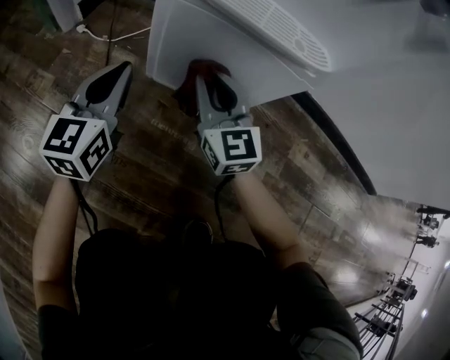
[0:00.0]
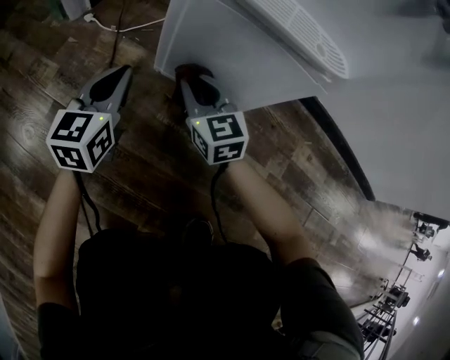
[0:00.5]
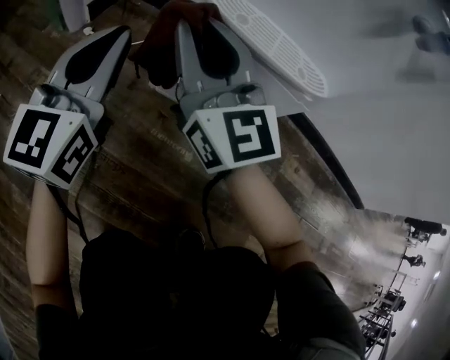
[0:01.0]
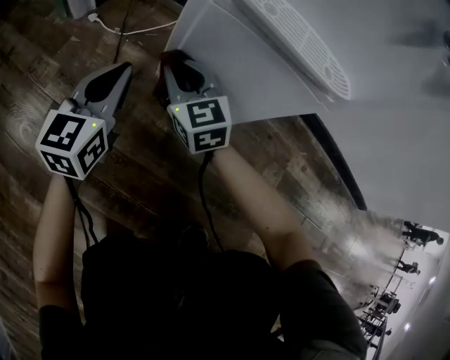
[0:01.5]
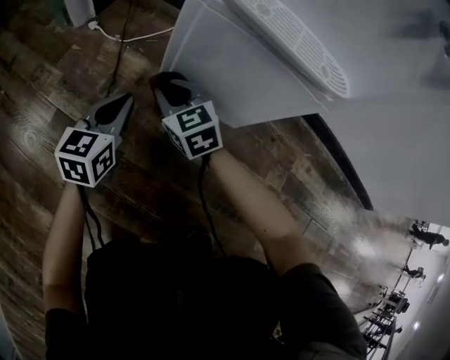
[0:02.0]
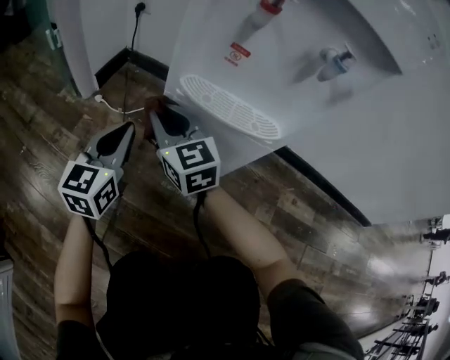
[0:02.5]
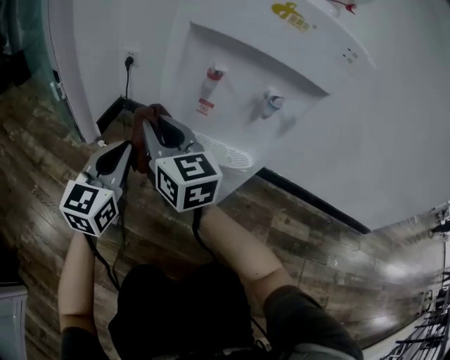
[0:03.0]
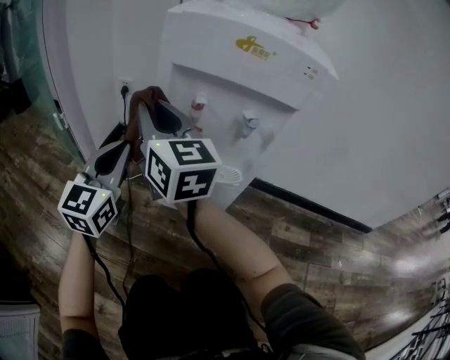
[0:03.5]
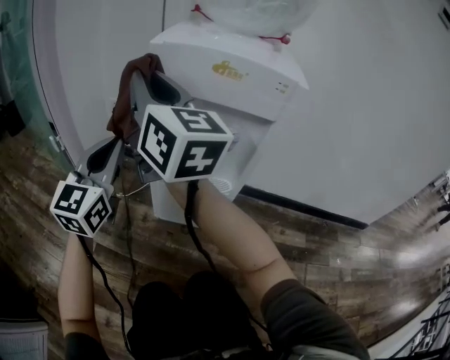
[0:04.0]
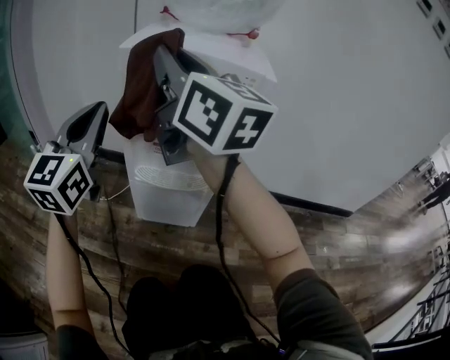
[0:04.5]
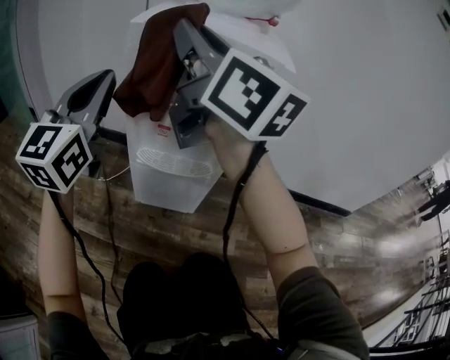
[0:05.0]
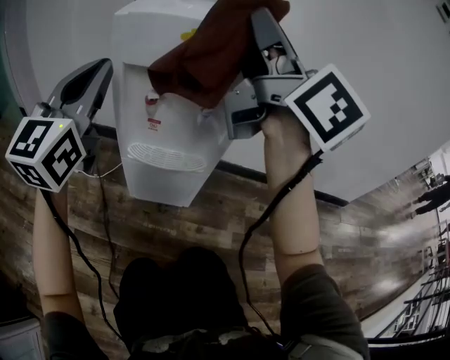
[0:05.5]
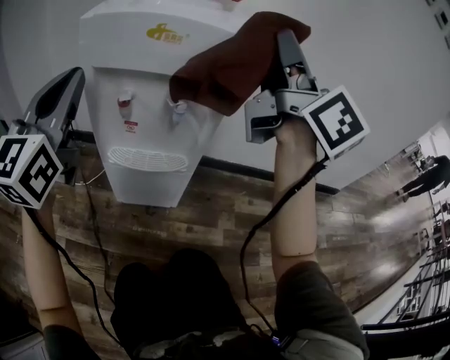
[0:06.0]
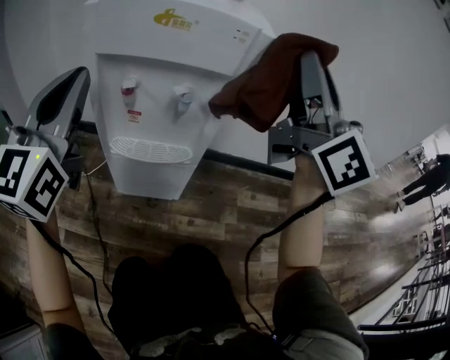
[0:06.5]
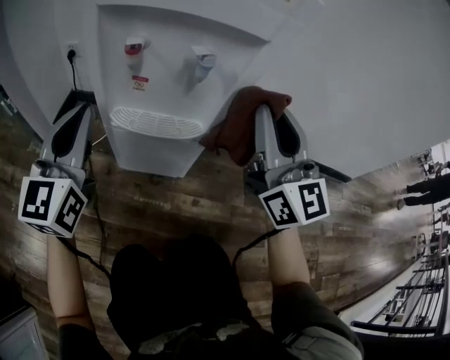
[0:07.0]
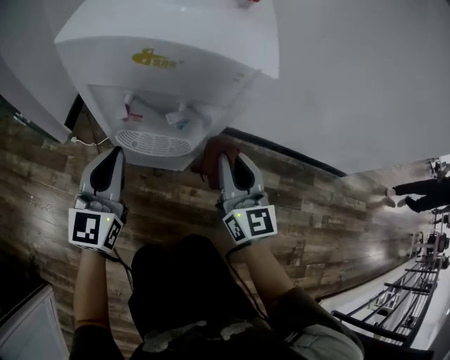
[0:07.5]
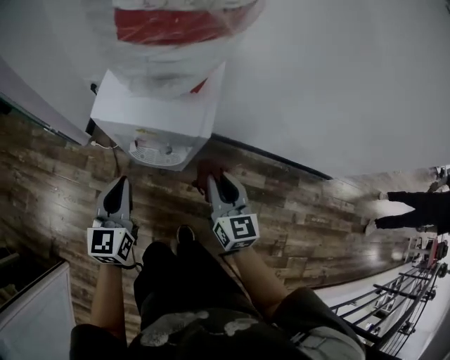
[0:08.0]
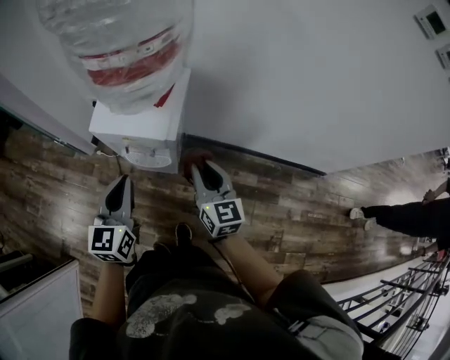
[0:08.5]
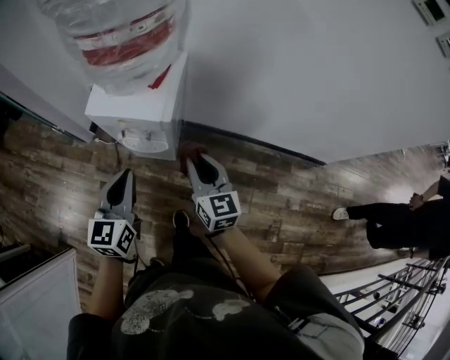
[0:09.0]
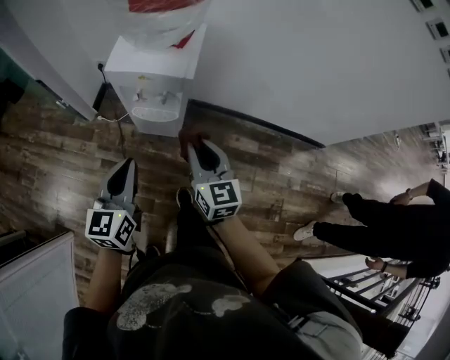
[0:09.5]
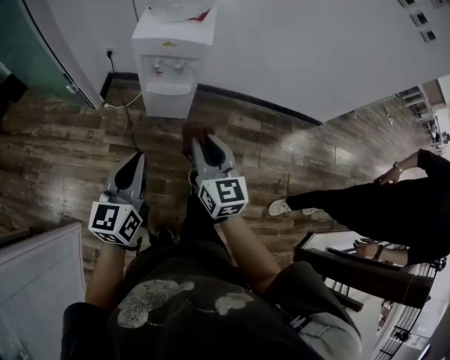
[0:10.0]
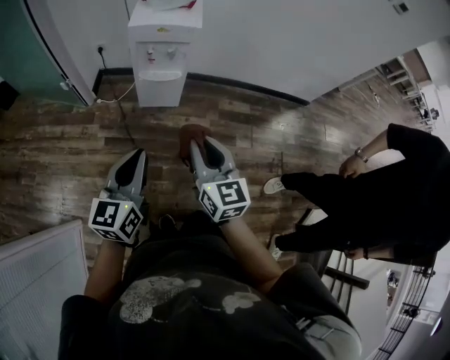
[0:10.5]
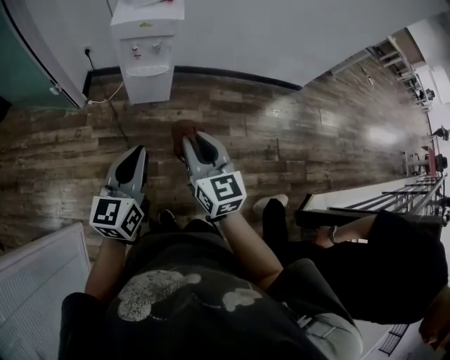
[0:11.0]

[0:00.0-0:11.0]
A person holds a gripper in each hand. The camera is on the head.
0:00.0 to 0:02.0: The right gripper goes up and down, about 25 cm each way, reversing 2 times, and rotates some 30 degrees. Meanwhile the left gripper goes up and down, about 20 cm each way, reversing 2 times.
0:02.0 to 0:03.5: The grippers both shift upward by approximately 40 cm. The left gripper changes its angle by roughly 30 degrees. Meanwhile the right gripper angles its fingers upward, by some 40 degrees.
0:03.5 to 0:05.5: The left gripper goes roughly 20 cm upward; the right gripper is displaced upward and to the right by roughly 30 cm, and rotates roughly 20 degrees.
0:05.5 to 0:07.5: The left gripper goes some 15 cm downward and to the right, and changes its angle by approximately 20 degrees, while the right gripper is displaced downward by about 30 cm, and swivels roughly 40 degrees.
0:07.5 to 0:09.0: The right gripper goes approximately 25 cm upward. Meanwhile the left gripper heads upward and to the right, covering some 30 cm.
0:09.0 to 0:11.0: Both grippers move backward, roughly 40 cm. The left gripper changes its angle by about 20 degrees.

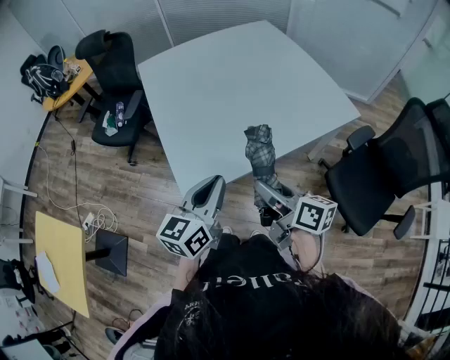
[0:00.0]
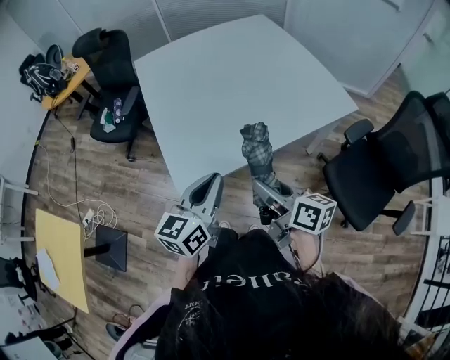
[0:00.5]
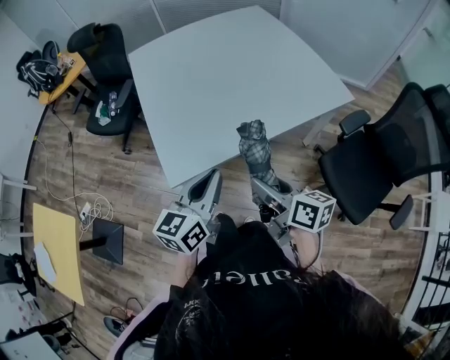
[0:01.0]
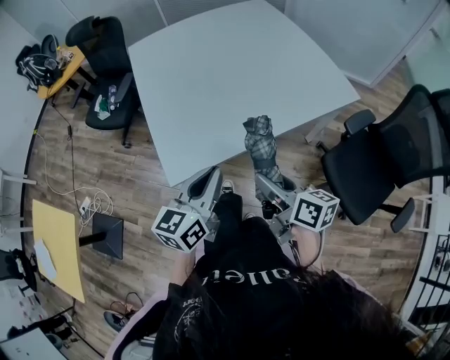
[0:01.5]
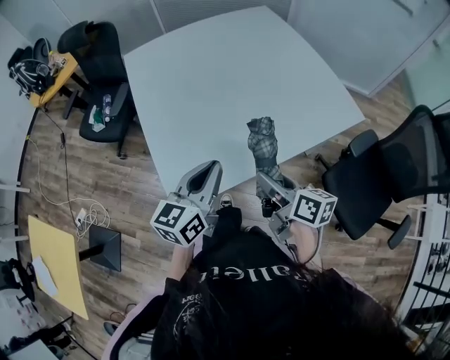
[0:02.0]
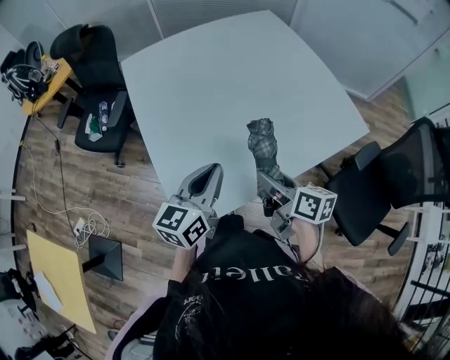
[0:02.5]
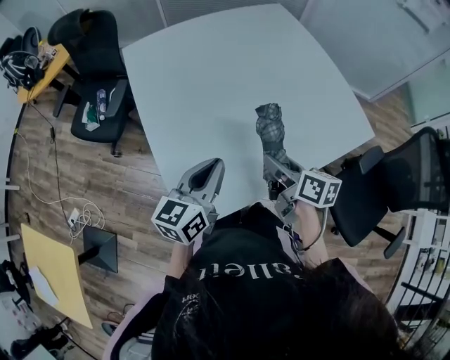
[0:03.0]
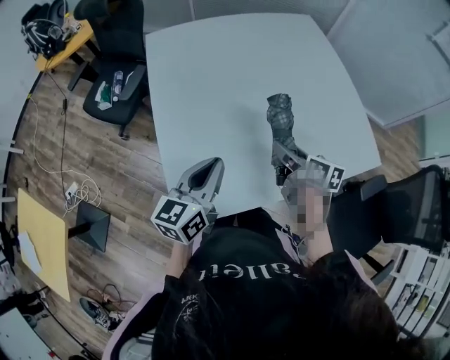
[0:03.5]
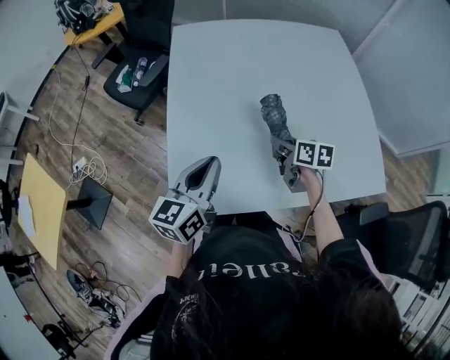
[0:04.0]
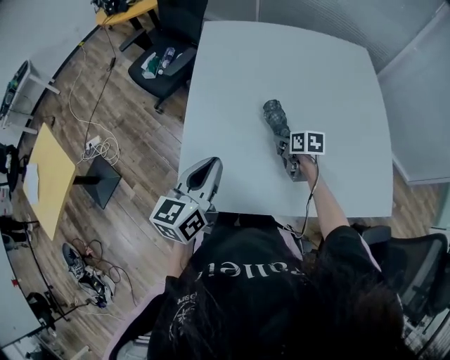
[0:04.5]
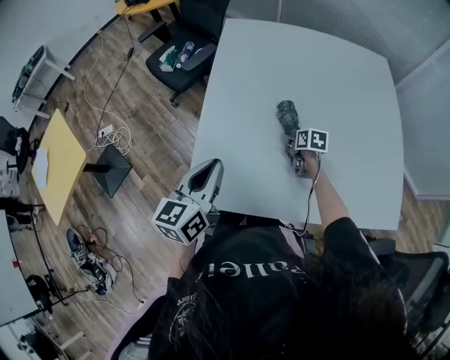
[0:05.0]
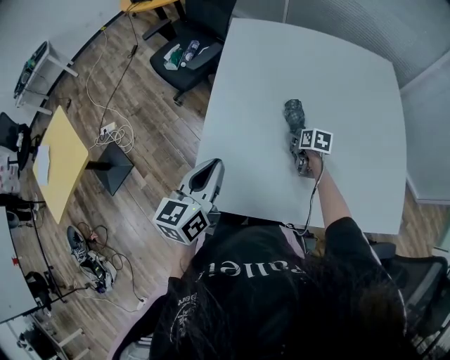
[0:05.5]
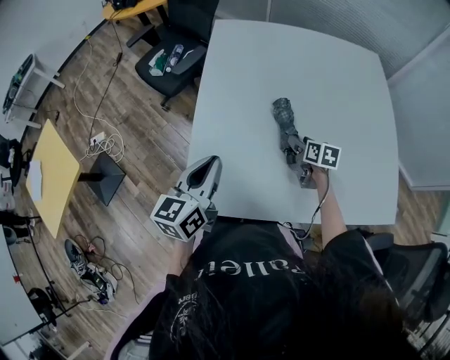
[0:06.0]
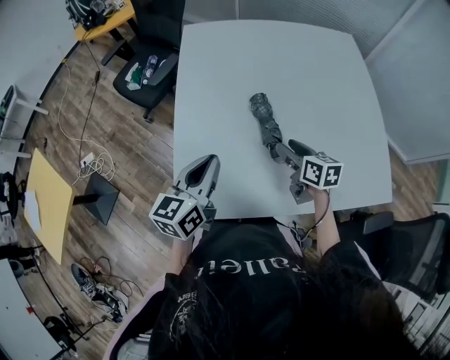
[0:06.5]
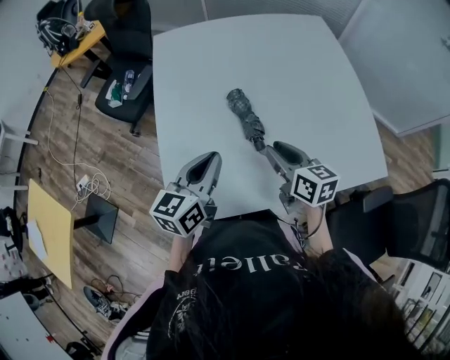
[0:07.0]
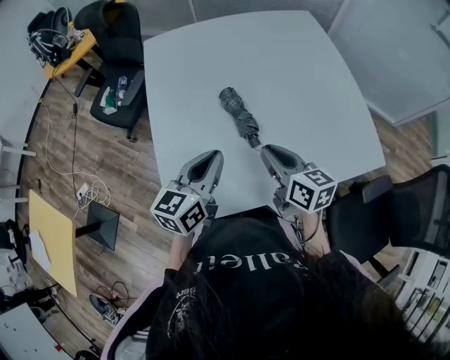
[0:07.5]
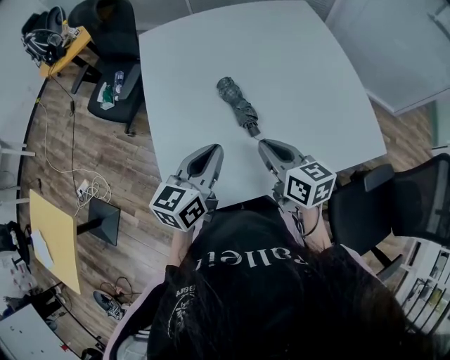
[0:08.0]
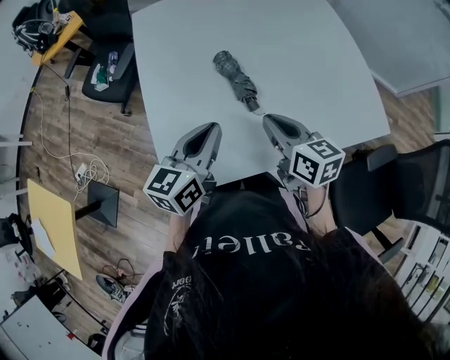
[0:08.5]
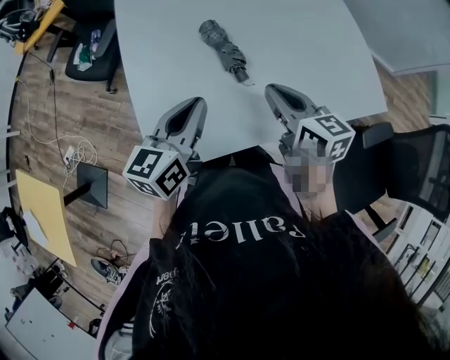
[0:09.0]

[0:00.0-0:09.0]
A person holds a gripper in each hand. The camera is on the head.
0:00.0 to 0:02.0: Both grippers move forward, some 10 cm.
0:02.0 to 0:04.5: The right gripper ends up approximately 35 cm from where it was, and turns by some 40 degrees. The left gripper ends up approximately 10 cm from where it was, and changes its angle by some 30 degrees.
0:04.5 to 0:07.0: The right gripper is displaced upward and backward by roughly 20 cm, and swivels roughly 30 degrees. Meanwhile the left gripper goes about 5 cm to the right.
0:07.0 to 0:09.0: The right gripper closes up.

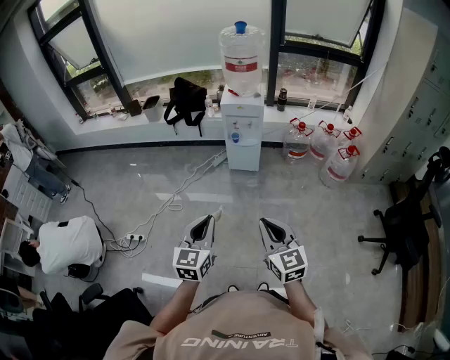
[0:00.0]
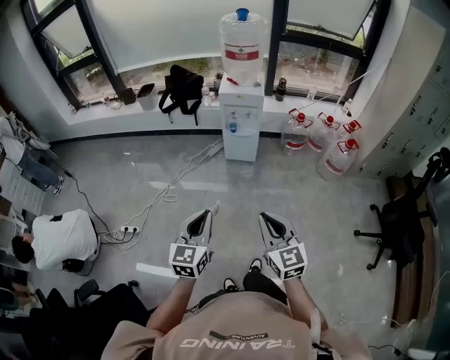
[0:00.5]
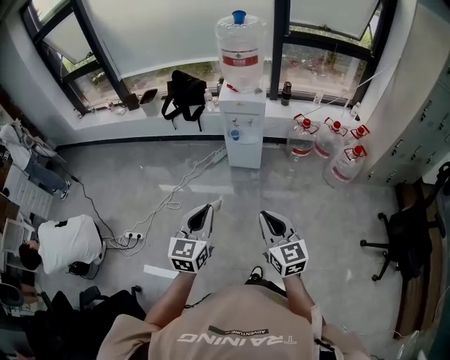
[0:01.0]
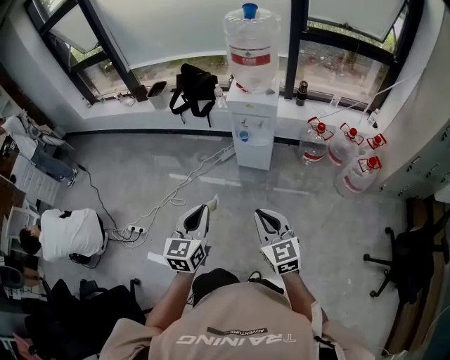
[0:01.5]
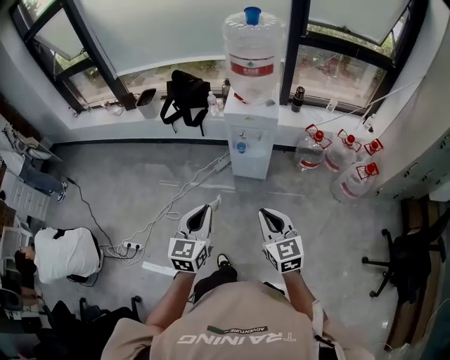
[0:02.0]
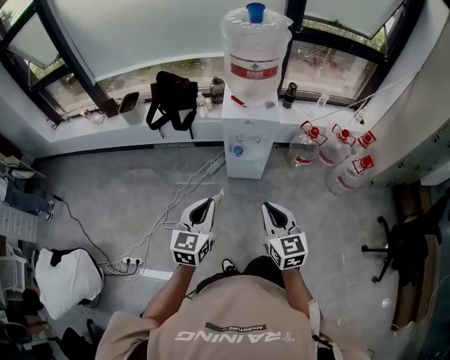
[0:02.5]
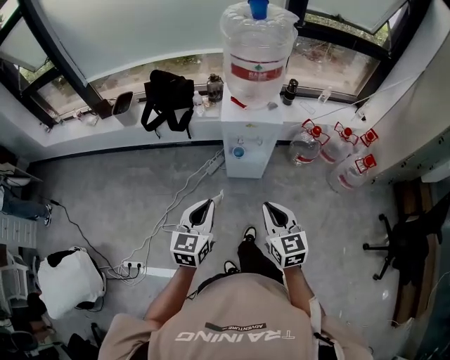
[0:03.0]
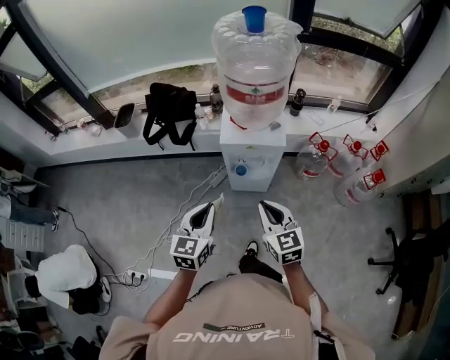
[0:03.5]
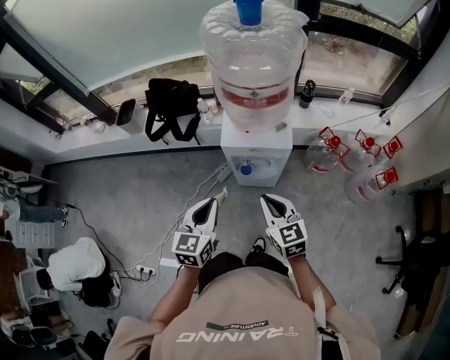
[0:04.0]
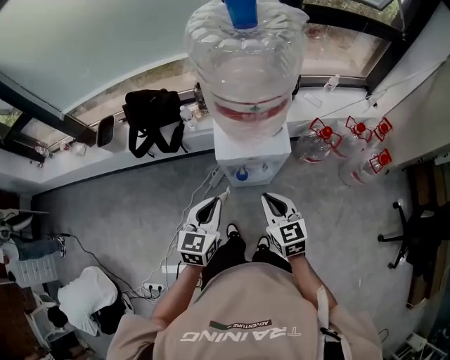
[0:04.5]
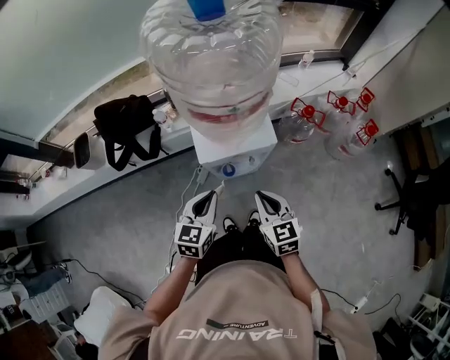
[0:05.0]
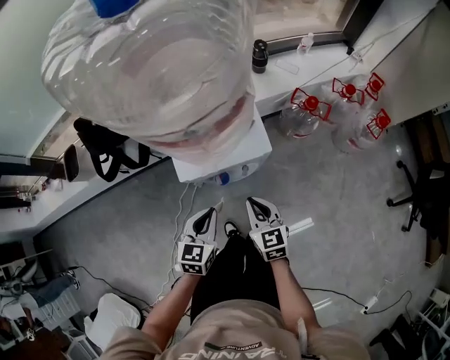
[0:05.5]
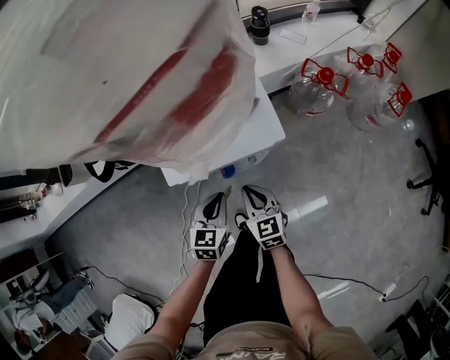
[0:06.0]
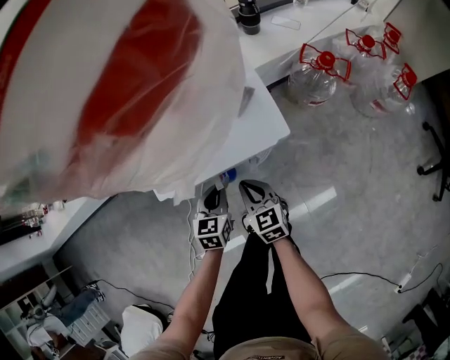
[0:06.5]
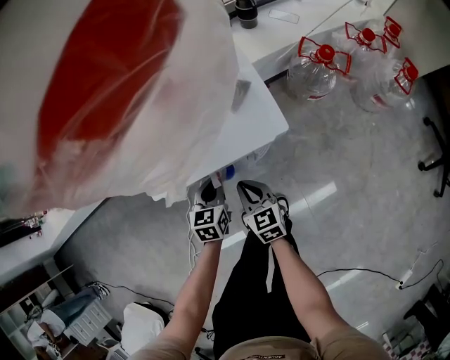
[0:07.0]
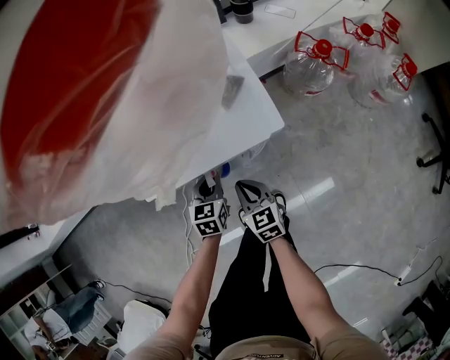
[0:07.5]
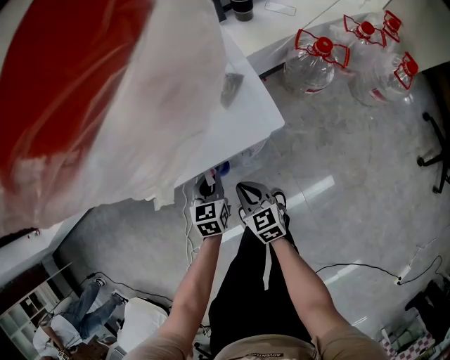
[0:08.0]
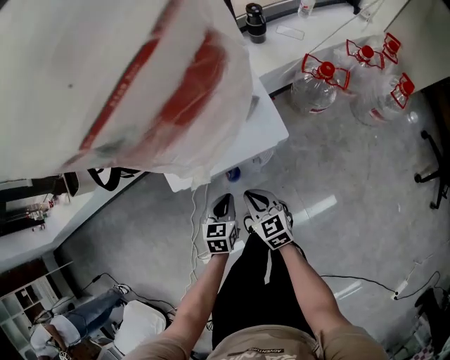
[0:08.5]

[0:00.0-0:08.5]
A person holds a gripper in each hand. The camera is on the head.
0:00.0 to 0:02.0: Both grippers travel together forward, roughly 30 cm.
0:02.0 to 0:04.0: Both grippers move forward, about 35 cm.
0:04.0 to 0:06.5: The two grippers go about 40 cm downward and forward. The left gripper turns by some 20 degrees, while the right gripper changes its angle by roughly 20 degrees.
0:06.5 to 0:08.5: The left gripper shifts approximately 5 cm backward. The right gripper shifts by roughly 5 cm.
